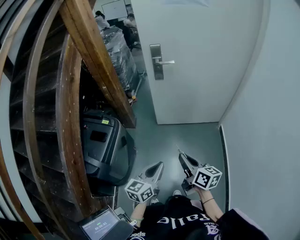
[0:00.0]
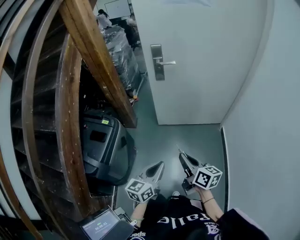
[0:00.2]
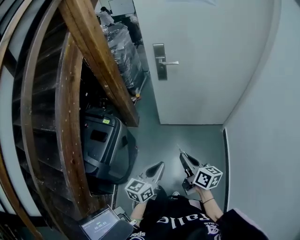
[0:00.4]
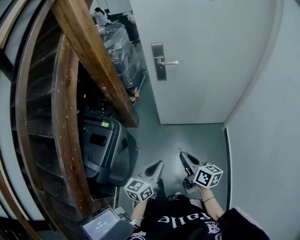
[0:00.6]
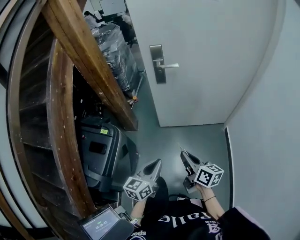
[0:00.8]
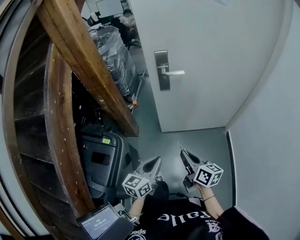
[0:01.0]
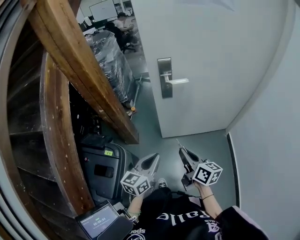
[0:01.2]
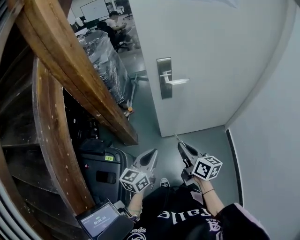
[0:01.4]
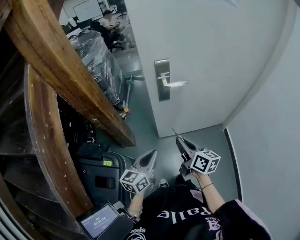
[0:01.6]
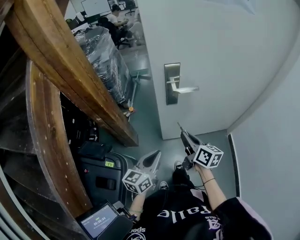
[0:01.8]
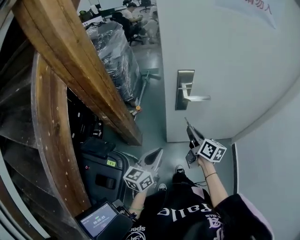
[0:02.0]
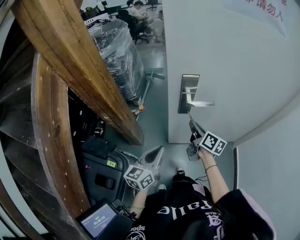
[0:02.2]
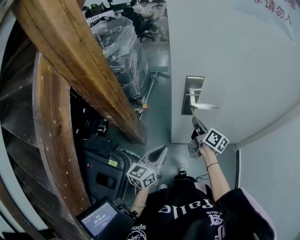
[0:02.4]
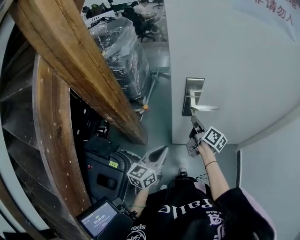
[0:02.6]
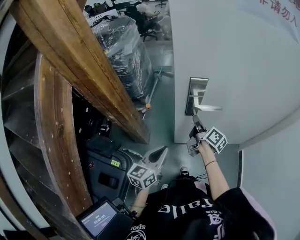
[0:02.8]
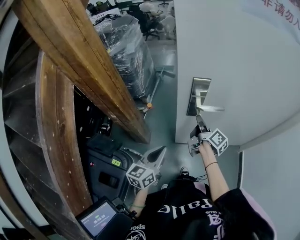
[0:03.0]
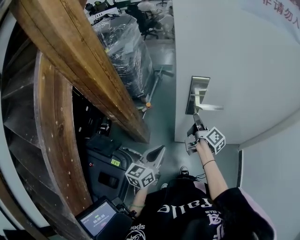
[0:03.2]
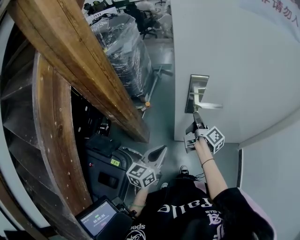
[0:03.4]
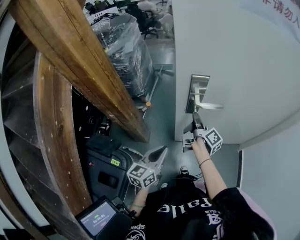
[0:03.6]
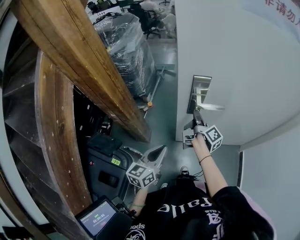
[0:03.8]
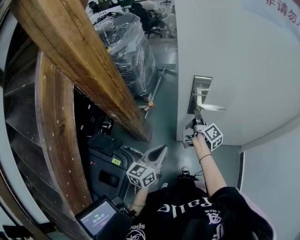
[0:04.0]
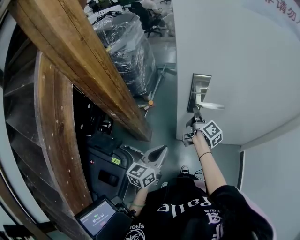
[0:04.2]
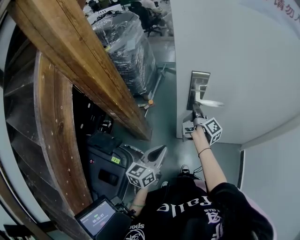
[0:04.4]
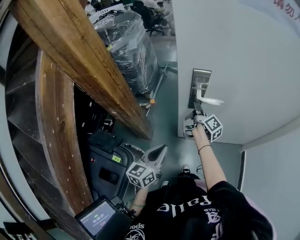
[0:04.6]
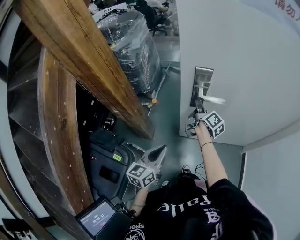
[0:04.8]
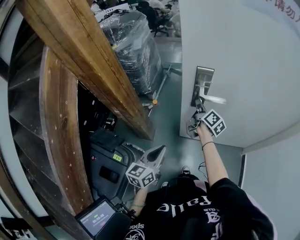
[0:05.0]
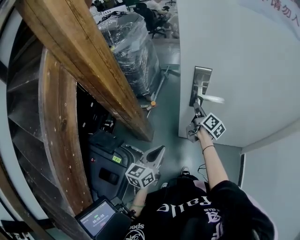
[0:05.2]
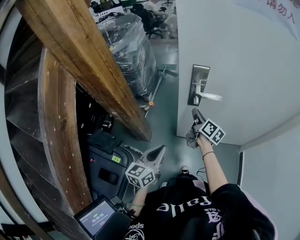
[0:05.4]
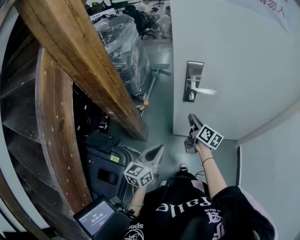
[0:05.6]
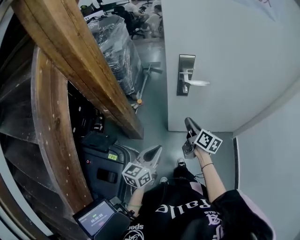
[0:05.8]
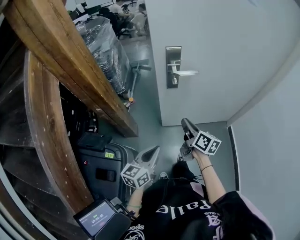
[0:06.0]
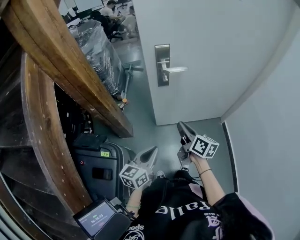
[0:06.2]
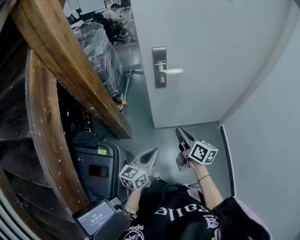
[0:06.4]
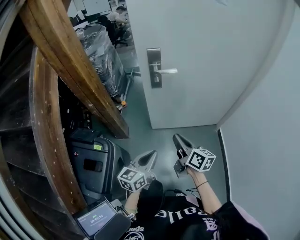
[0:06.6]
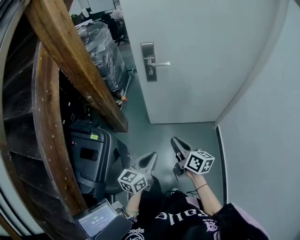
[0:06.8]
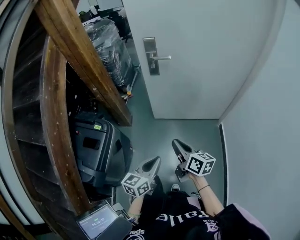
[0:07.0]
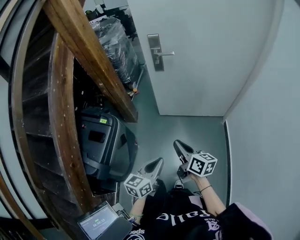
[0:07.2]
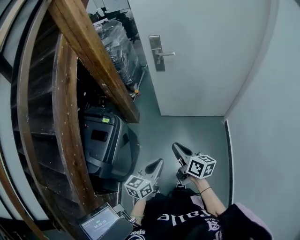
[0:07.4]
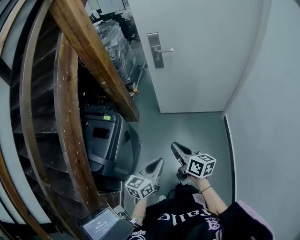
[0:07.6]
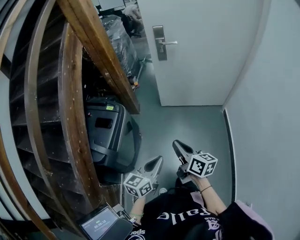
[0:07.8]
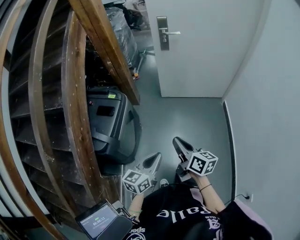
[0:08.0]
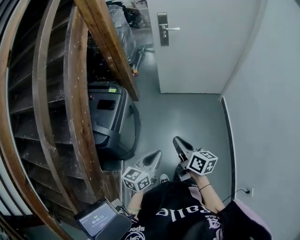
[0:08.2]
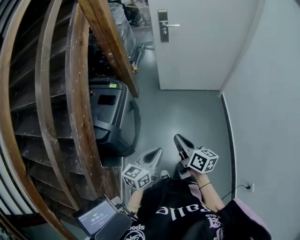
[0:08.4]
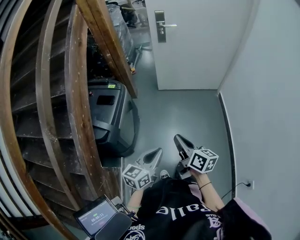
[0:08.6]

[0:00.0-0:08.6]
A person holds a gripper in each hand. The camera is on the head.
0:00.0 to 0:01.4: The two grippers go about 35 cm forward.
0:01.4 to 0:02.8: The left gripper shifts about 15 cm forward; the right gripper heads forward, covering approximately 30 cm, and swivels roughly 30 degrees.
0:02.8 to 0:04.4: The right gripper ends up about 5 cm from where it was, and turns by approximately 20 degrees.
0:04.4 to 0:05.8: The right gripper moves backward, approximately 15 cm, and rotates some 40 degrees. Meanwhile the left gripper heads backward, covering some 5 cm.
0:05.8 to 0:07.2: The left gripper is displaced backward and to the right by some 40 cm, while the right gripper heads backward, covering some 40 cm.
0:07.2 to 0:08.6: The right gripper is displaced backward by approximately 30 cm, while the left gripper goes some 30 cm backward and to the left.

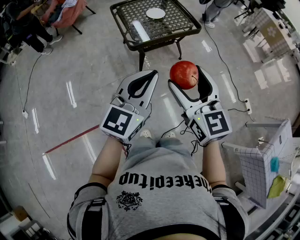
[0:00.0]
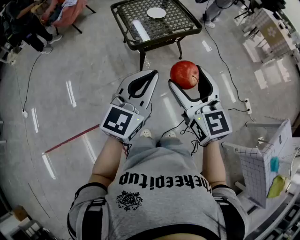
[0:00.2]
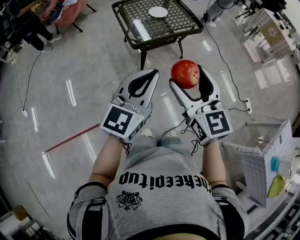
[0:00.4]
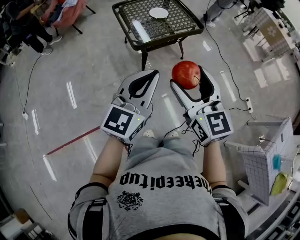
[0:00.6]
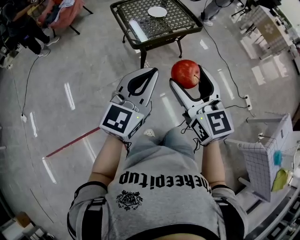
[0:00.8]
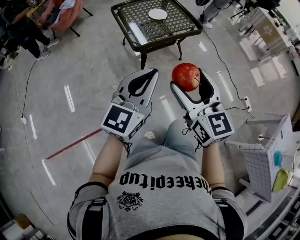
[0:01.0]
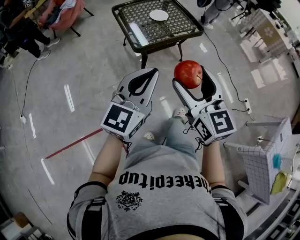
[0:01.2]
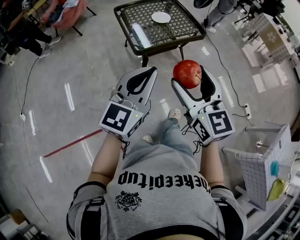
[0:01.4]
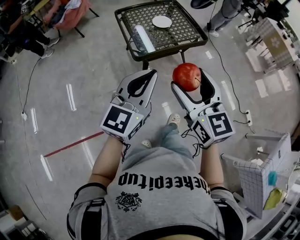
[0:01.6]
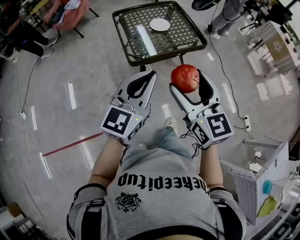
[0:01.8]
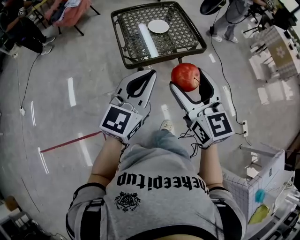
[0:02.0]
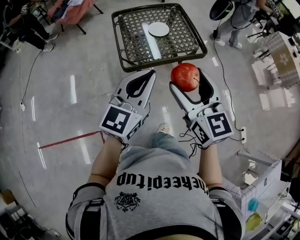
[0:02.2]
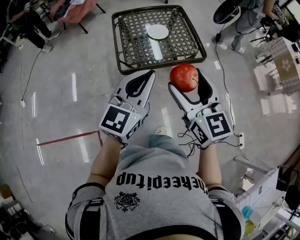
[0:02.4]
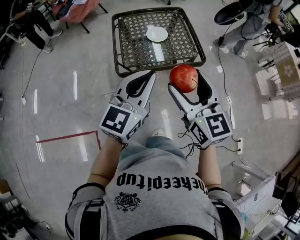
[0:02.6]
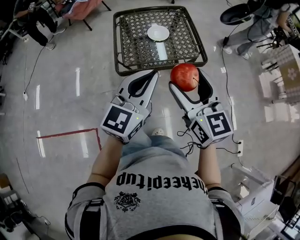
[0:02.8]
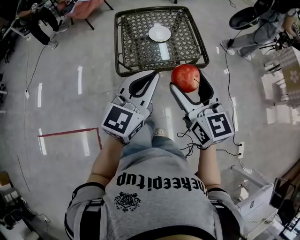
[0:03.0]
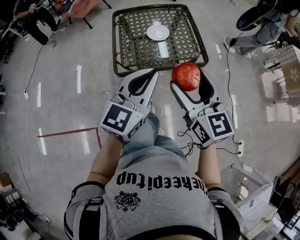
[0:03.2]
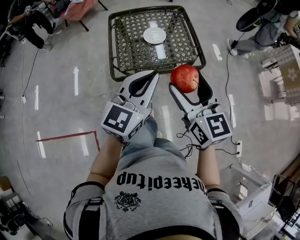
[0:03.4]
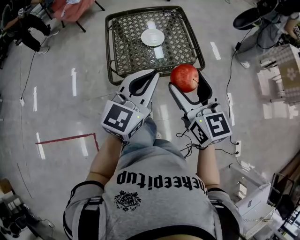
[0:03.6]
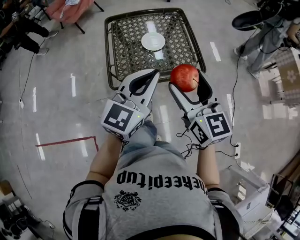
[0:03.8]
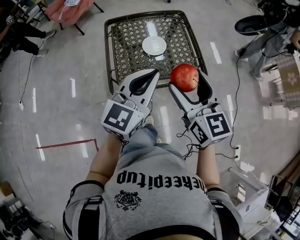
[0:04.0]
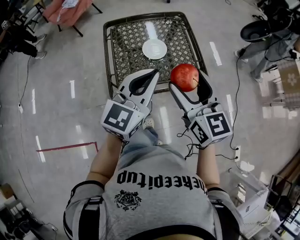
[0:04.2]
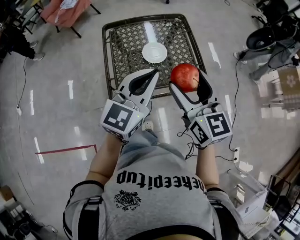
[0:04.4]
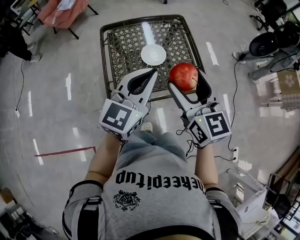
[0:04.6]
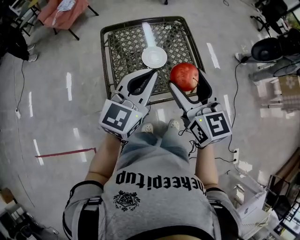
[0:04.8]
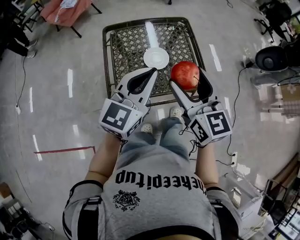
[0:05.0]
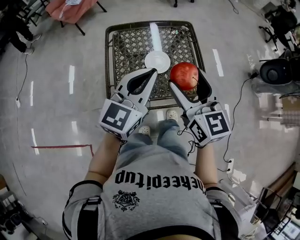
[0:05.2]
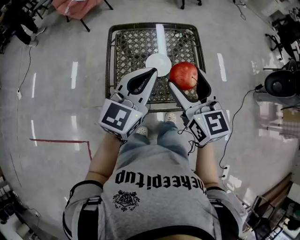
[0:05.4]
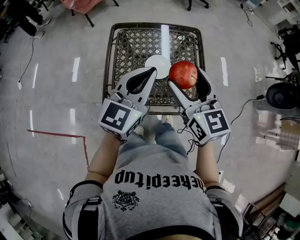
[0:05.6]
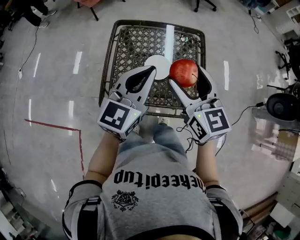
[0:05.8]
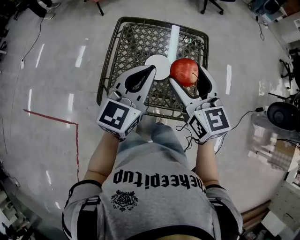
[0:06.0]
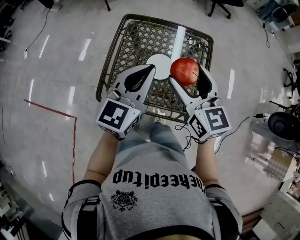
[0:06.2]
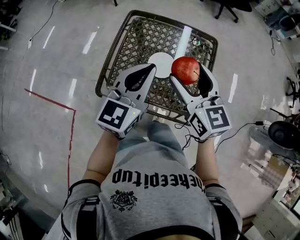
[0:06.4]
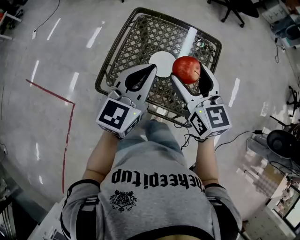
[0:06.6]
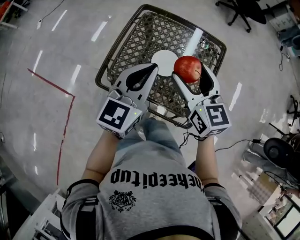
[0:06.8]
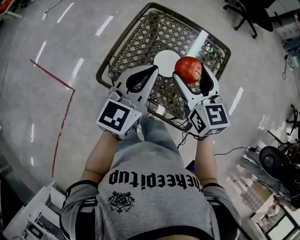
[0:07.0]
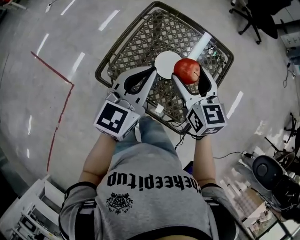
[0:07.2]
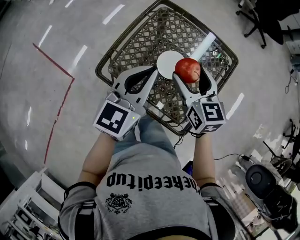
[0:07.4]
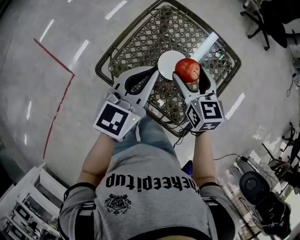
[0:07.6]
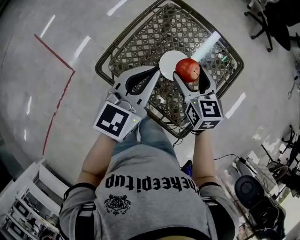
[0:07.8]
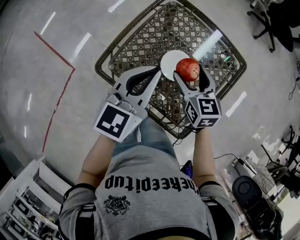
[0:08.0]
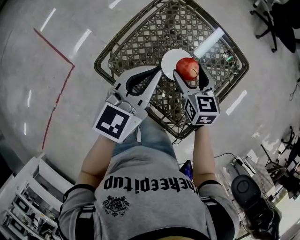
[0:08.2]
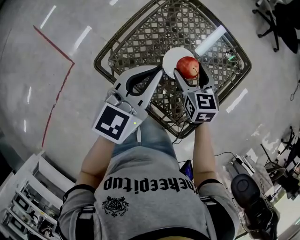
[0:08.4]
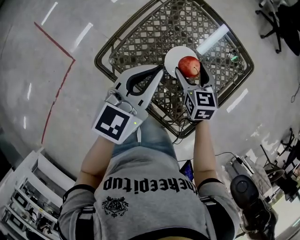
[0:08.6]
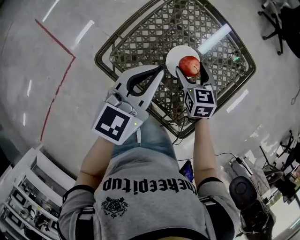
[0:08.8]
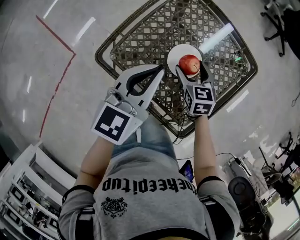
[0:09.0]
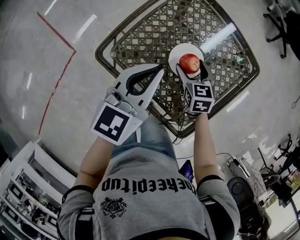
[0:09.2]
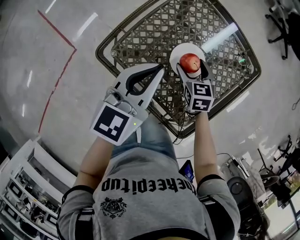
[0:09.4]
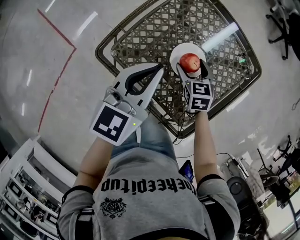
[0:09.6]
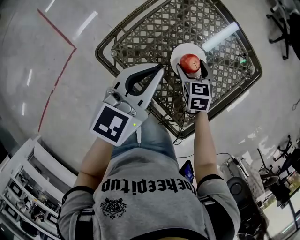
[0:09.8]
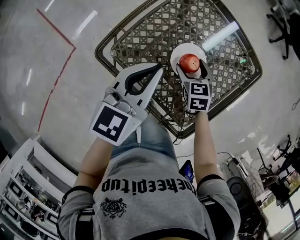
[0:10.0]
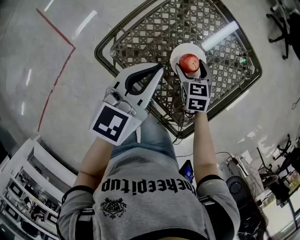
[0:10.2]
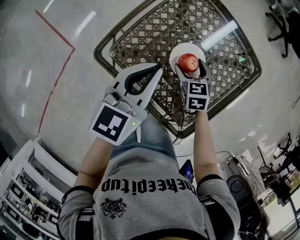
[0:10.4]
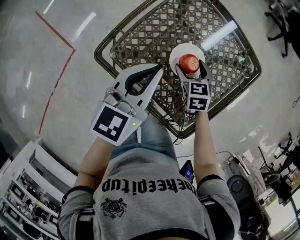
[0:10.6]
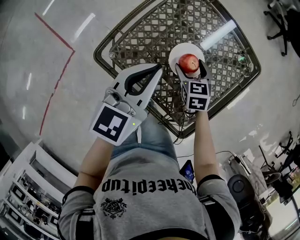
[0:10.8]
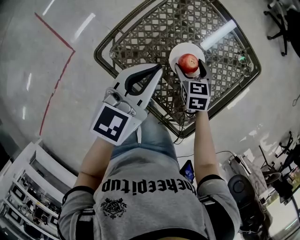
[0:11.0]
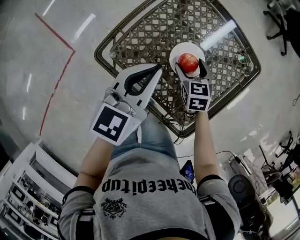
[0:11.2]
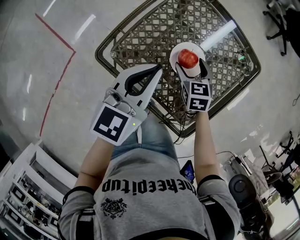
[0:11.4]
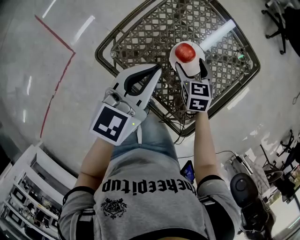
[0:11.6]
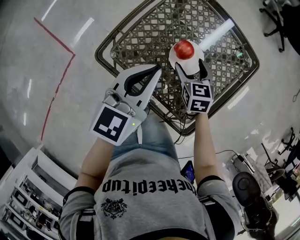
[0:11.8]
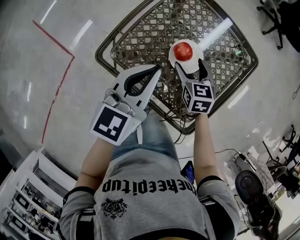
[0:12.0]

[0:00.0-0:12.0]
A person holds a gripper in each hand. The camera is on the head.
0:00.0 to 0:01.6: The grippers both shift forward by approximately 5 cm.
0:01.6 to 0:03.0: Both grippers move forward and to the right, about 25 cm.
0:03.0 to 0:04.4: Both grippers move forward, about 15 cm.
0:04.4 to 0:06.0: Both grippers move forward and upward, roughly 30 cm. The right gripper swivels approximately 30 degrees, while the left gripper turns by some 30 degrees.
0:06.0 to 0:07.6: The right gripper is displaced downward and forward by about 15 cm, and changes its angle by roughly 30 degrees; the left gripper shifts by roughly 5 cm, and turns by about 30 degrees.
0:07.6 to 0:09.0: The right gripper is displaced downward by approximately 20 cm. The left gripper goes about 5 cm downward.
0:09.0 to 0:10.4: The grippers make only small movements.
0:10.4 to 0:12.0: The right gripper changes place by some 5 cm.

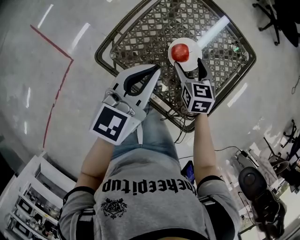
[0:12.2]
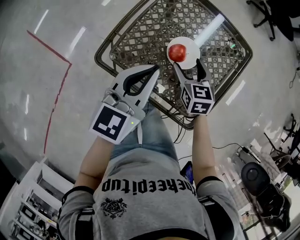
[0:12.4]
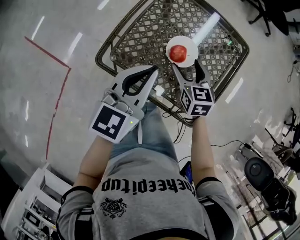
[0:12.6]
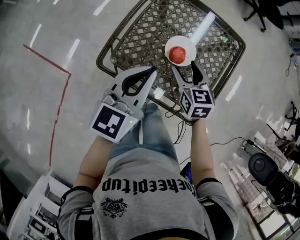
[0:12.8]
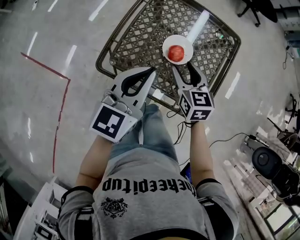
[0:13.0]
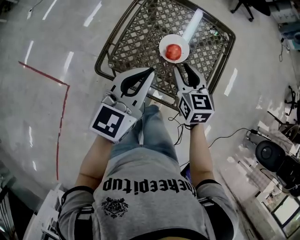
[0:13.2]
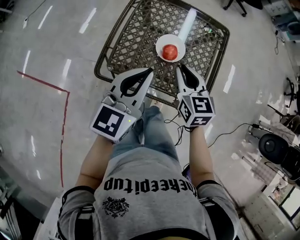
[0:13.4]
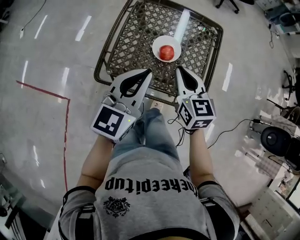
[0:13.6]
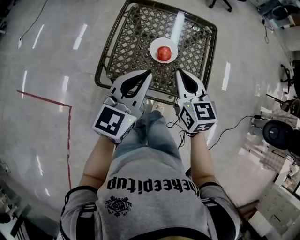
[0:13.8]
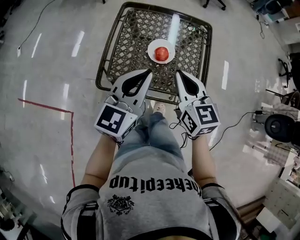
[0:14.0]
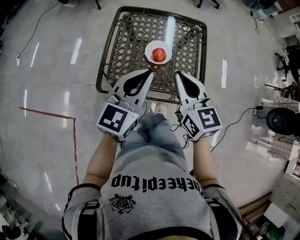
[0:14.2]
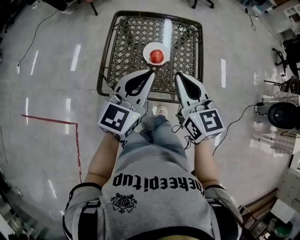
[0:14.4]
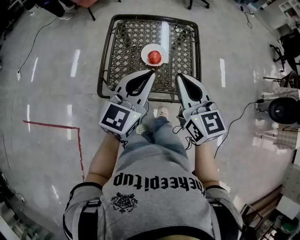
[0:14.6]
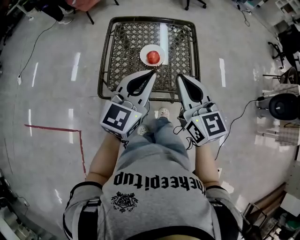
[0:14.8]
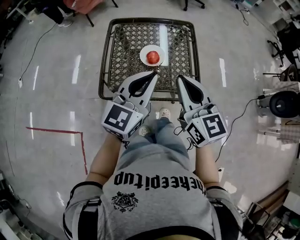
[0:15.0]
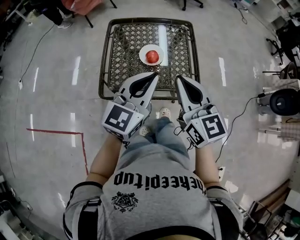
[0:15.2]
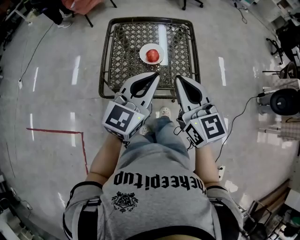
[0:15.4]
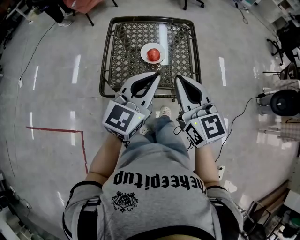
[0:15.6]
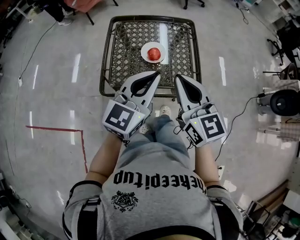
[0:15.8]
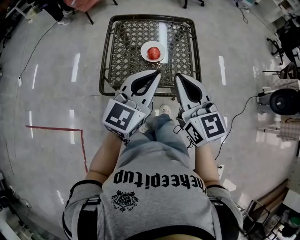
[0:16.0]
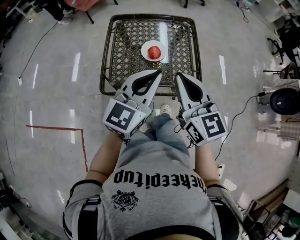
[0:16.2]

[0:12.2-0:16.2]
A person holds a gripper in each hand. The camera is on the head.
0:12.2 to 0:13.6: The left gripper turns by approximately 20 degrees. Meanwhile the right gripper swings up and down, roughly 10 cm each way, with 2 reversals, swivels approximately 20 degrees, and closes.
0:13.6 to 0:14.8: The right gripper shifts approximately 20 cm upward and backward, while the left gripper travels upward by approximately 5 cm.
0:14.8 to 0:16.2: The grippers make only small movements.
